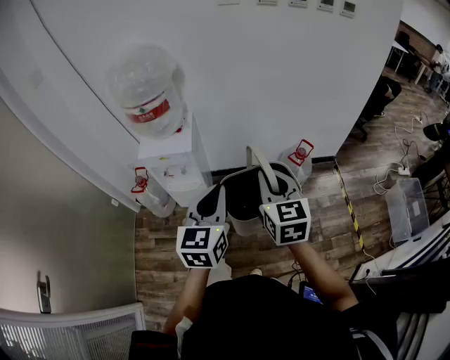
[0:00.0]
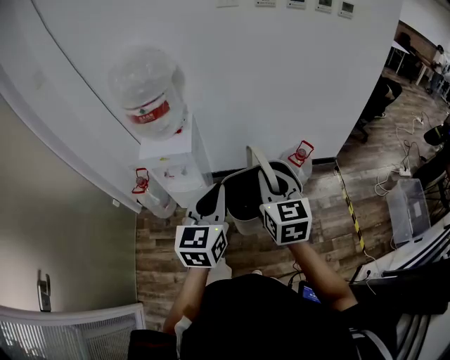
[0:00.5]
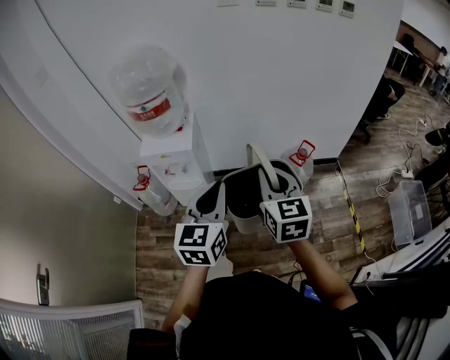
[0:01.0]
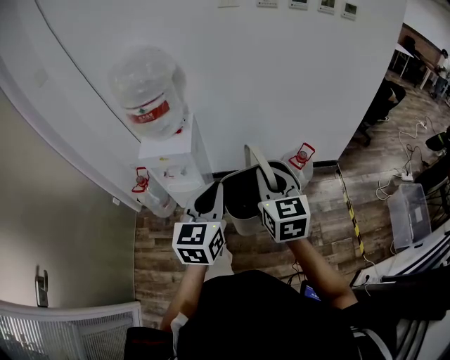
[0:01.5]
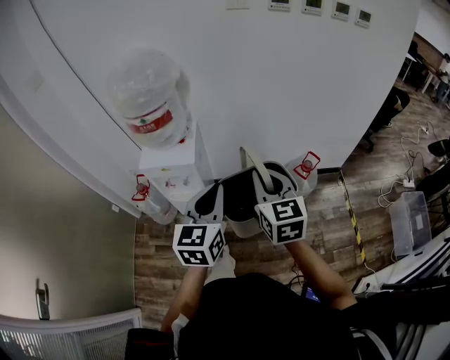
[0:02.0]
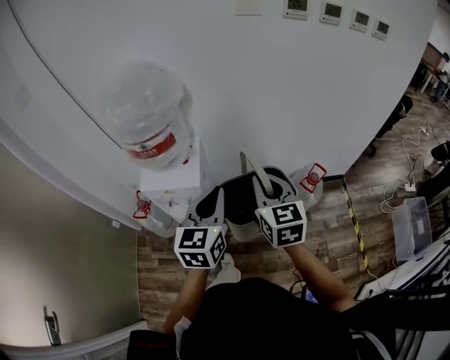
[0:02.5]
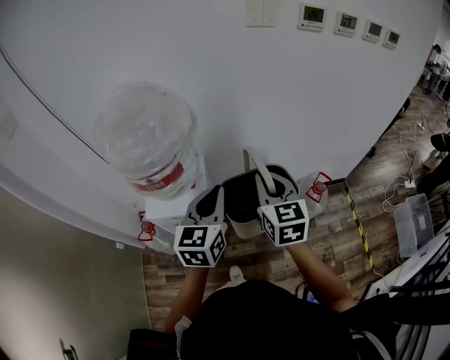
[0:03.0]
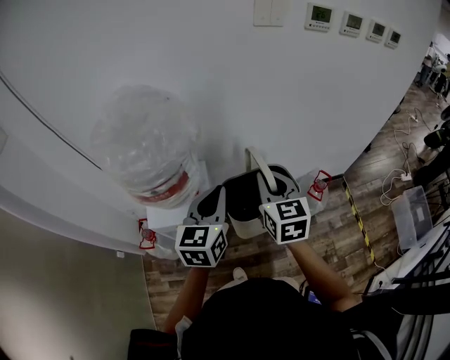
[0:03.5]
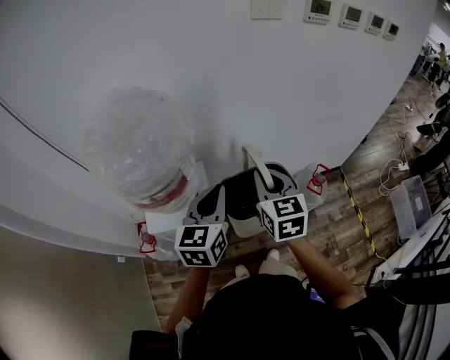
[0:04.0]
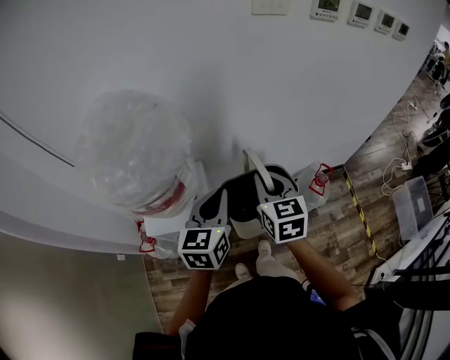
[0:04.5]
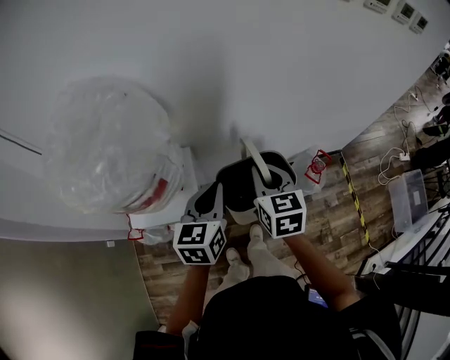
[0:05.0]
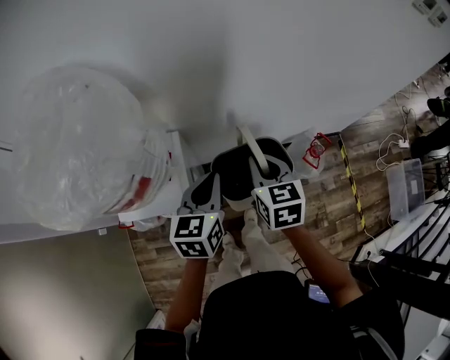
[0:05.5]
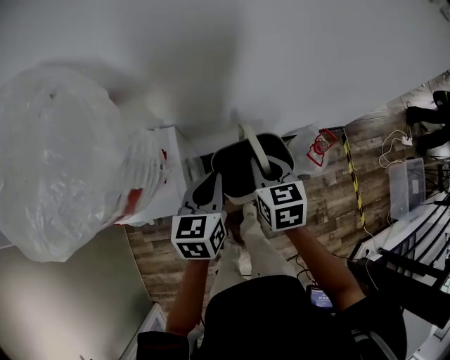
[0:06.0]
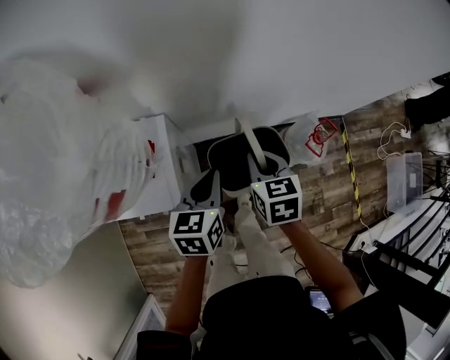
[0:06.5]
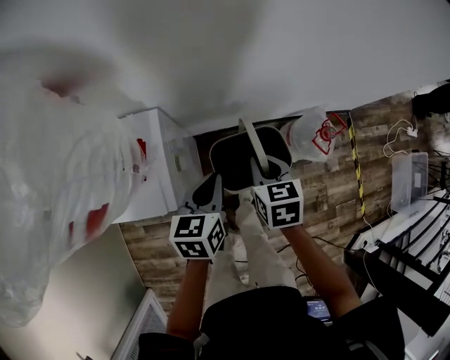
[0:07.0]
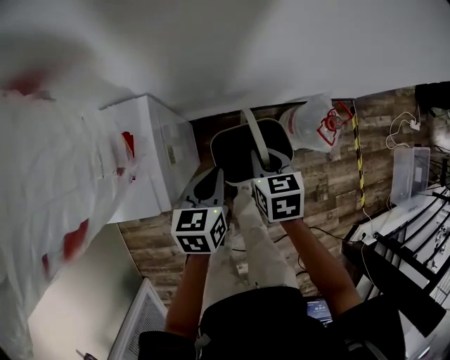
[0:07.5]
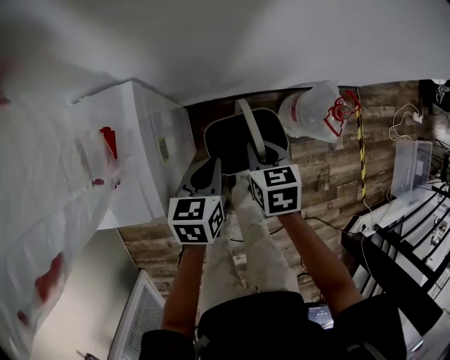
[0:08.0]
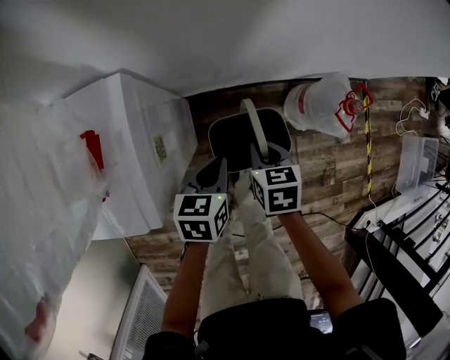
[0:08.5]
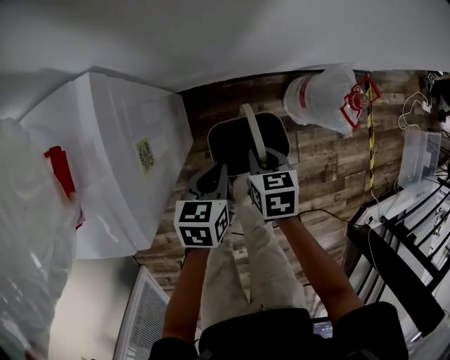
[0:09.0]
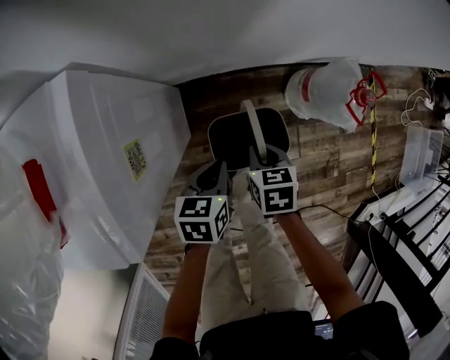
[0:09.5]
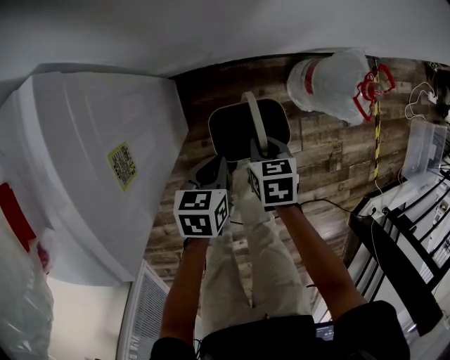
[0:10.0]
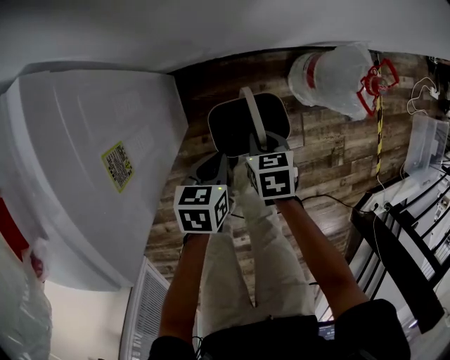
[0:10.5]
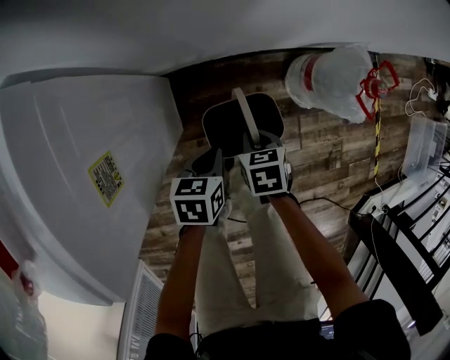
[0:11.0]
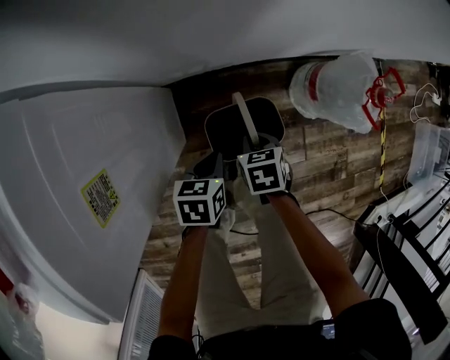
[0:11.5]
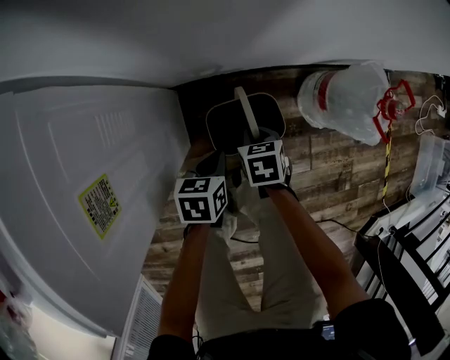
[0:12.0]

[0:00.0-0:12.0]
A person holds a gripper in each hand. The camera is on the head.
0:00.0 to 0:02.0: Both grippers travel together forward, some 5 cm.
0:02.0 to 0:04.0: Both grippers move forward and to the left, roughly 30 cm.
0:04.0 to 0:06.0: Both grippers move downward and forward, some 20 cm. The right gripper turns by some 20 degrees.
0:06.0 to 0:08.0: Both grippers travel together downward, about 25 cm.
0:08.0 to 0:10.0: Both grippers travel together downward, roughly 20 cm.
0:10.0 to 0:12.0: The right gripper heads downward and forward, covering roughly 15 cm; the left gripper goes roughly 10 cm downward.

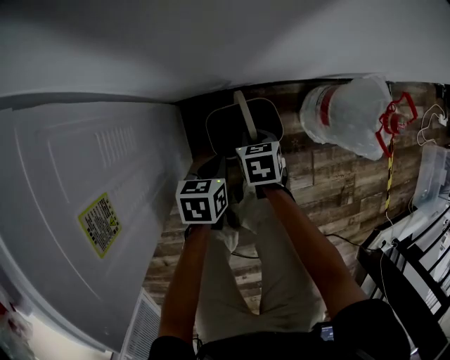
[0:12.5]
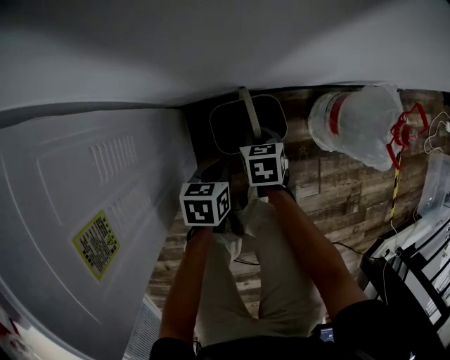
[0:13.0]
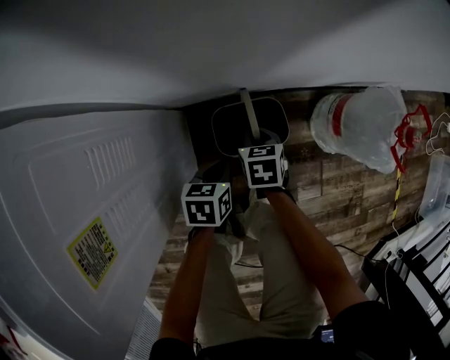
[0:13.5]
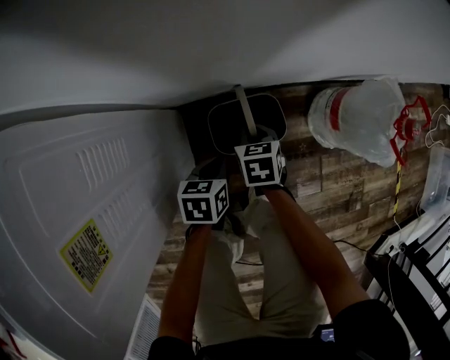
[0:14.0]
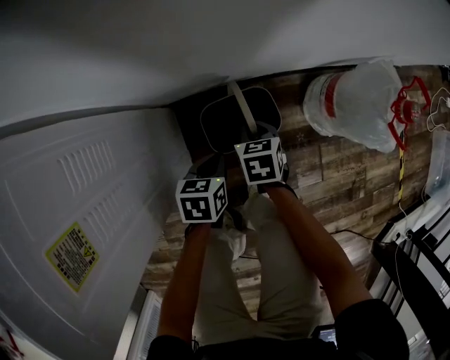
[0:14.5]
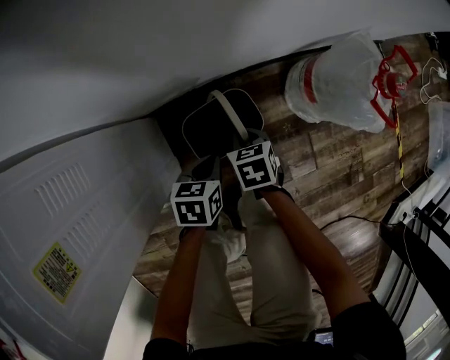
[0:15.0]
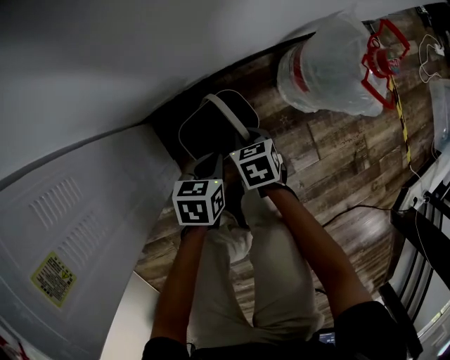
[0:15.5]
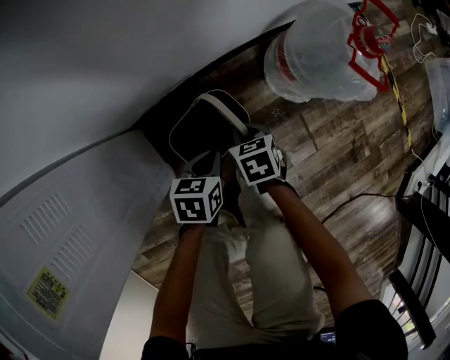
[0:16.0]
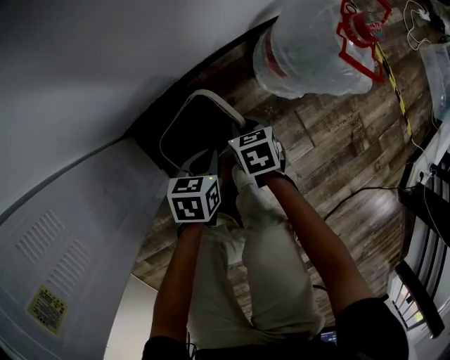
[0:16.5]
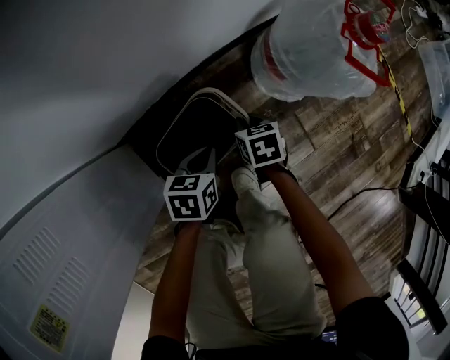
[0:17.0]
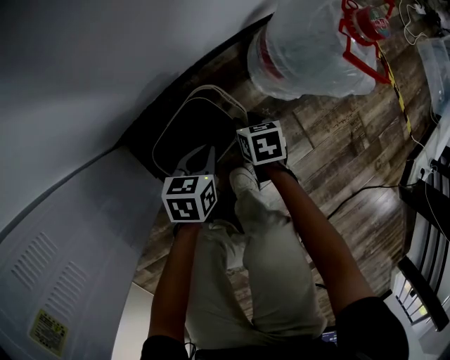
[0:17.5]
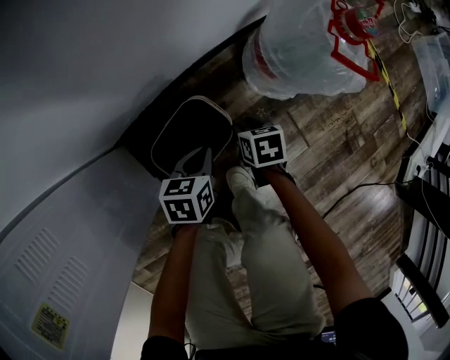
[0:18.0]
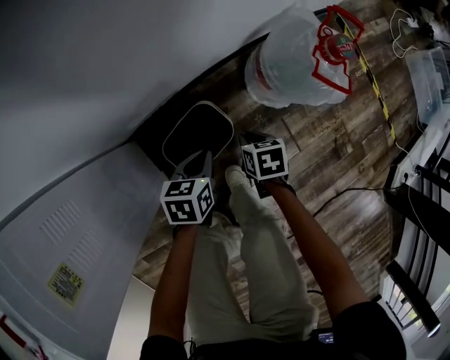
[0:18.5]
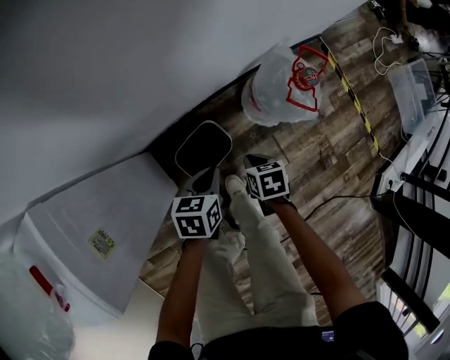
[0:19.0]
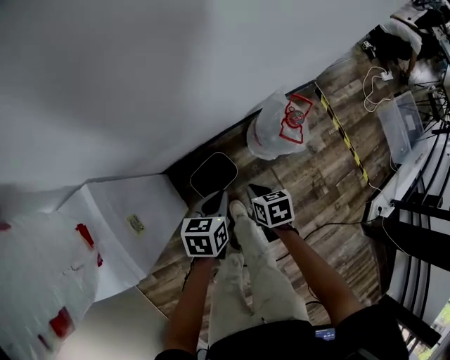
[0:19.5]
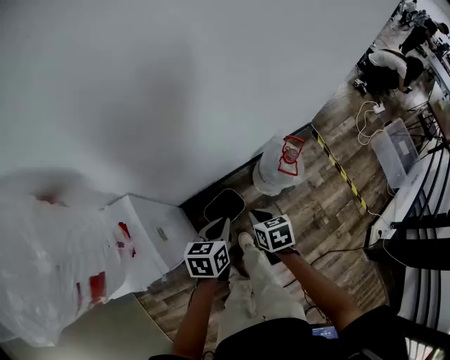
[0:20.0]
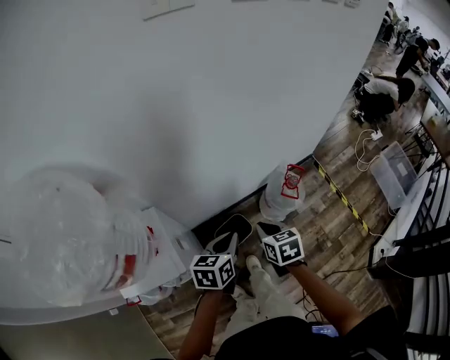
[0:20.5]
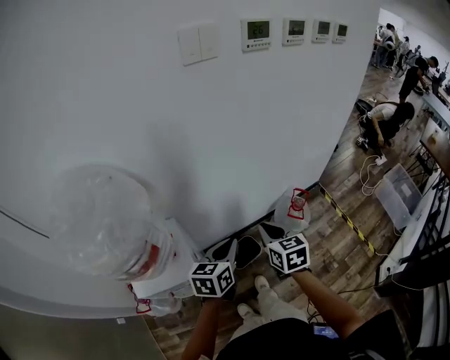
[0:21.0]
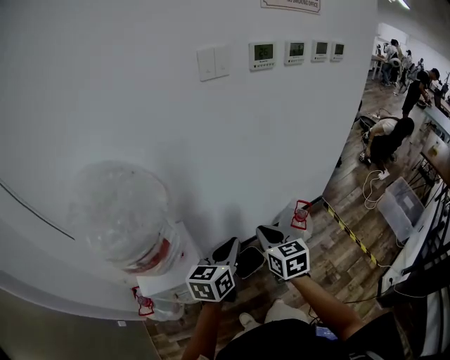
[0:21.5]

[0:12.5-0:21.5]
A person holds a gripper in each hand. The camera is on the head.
0:12.5 to 0:14.5: The left gripper is displaced downward by approximately 5 cm.
0:14.5 to 0:17.0: Both grippers move to the right and downward, about 15 cm. The left gripper changes its angle by about 20 degrees; the right gripper turns by about 20 degrees.
0:17.0 to 0:19.5: The grippers both shift upward by approximately 40 cm. The right gripper opens and closes again.
0:19.5 to 0:21.5: Both grippers move upward, about 40 cm. The right gripper tips its fingers upward by some 40 degrees; the left gripper turns by about 30 degrees.

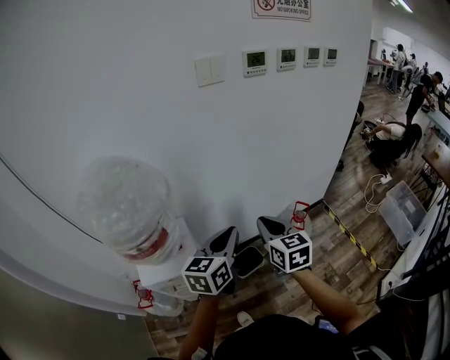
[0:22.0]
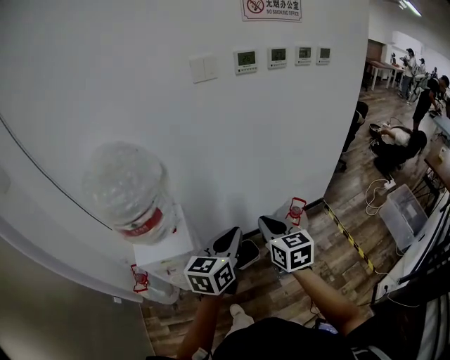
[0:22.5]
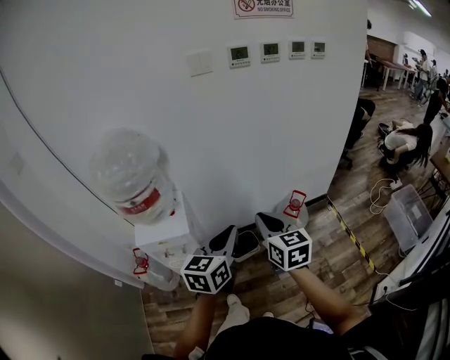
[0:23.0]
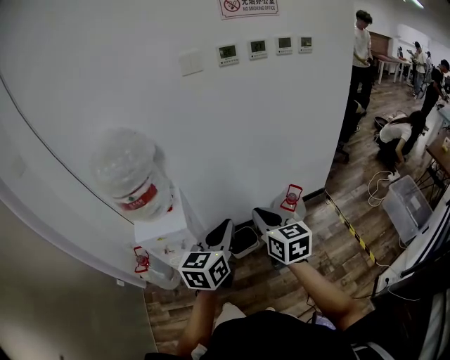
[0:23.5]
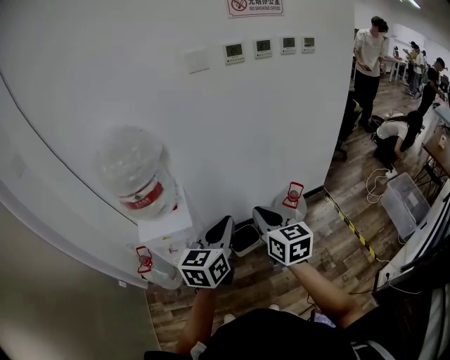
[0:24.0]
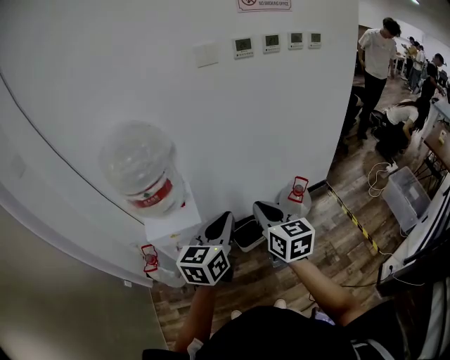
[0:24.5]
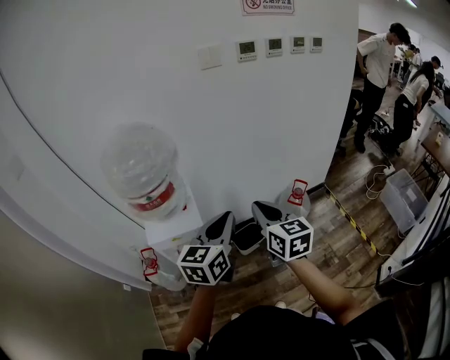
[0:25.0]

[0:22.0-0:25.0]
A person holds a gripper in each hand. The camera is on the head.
0:22.0 to 0:23.5: Both grippers travel together backward and to the right, about 20 cm.
0:23.5 to 0:25.0: The grippers both shift to the left by about 10 cm.

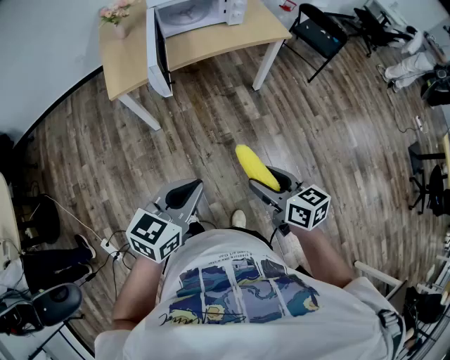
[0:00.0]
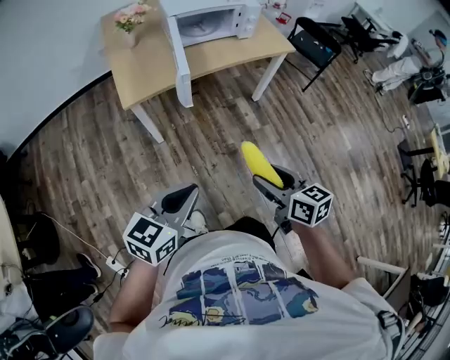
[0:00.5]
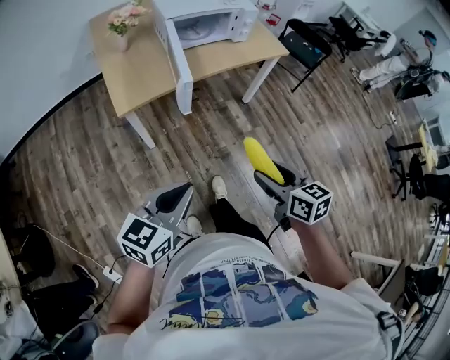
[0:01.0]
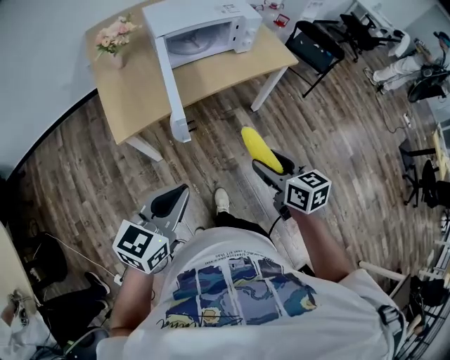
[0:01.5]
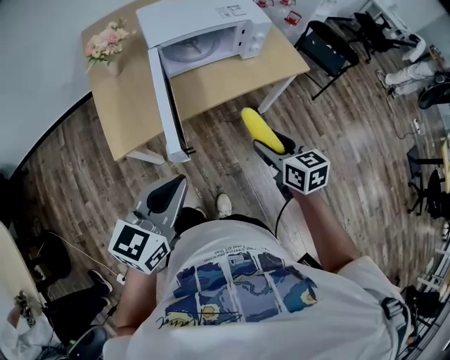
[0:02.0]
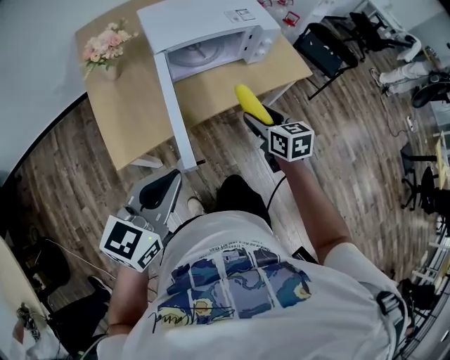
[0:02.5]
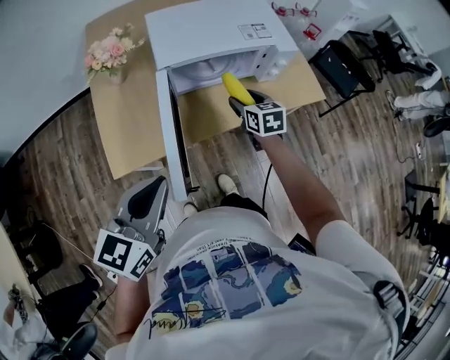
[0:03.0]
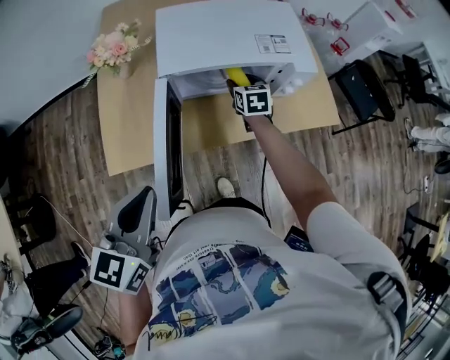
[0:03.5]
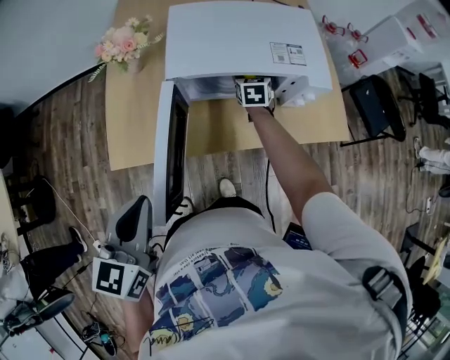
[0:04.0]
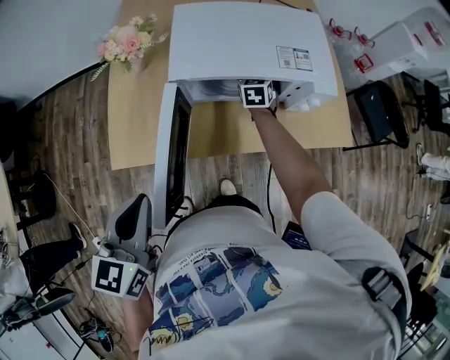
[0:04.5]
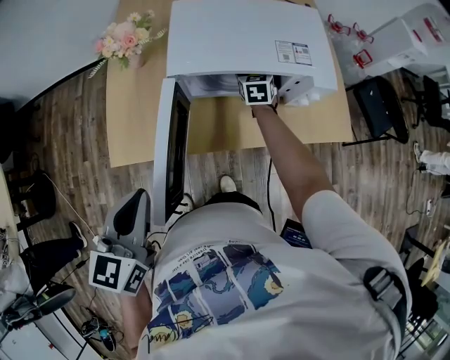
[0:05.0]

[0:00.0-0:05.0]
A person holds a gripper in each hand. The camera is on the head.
0:00.0 to 0:02.5: The right gripper goes some 50 cm forward, and turns by approximately 20 degrees. The left gripper moves forward and to the left, about 35 cm.
0:02.5 to 0:05.0: The right gripper is displaced forward by some 35 cm, and changes its angle by some 20 degrees. Meanwhile the left gripper goes some 10 cm forward, and turns by approximately 40 degrees.
